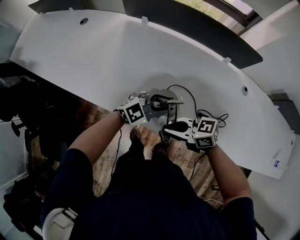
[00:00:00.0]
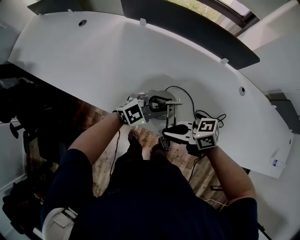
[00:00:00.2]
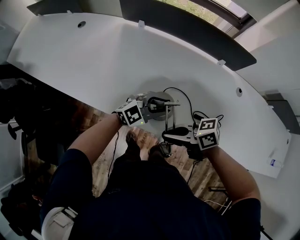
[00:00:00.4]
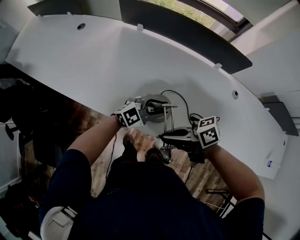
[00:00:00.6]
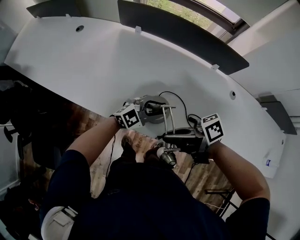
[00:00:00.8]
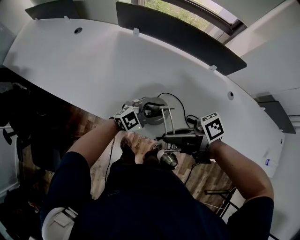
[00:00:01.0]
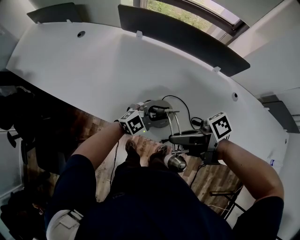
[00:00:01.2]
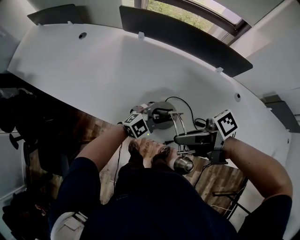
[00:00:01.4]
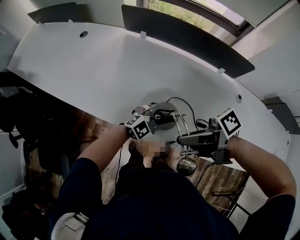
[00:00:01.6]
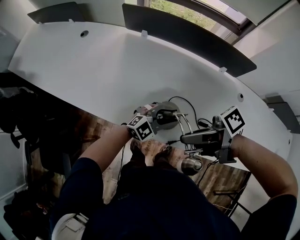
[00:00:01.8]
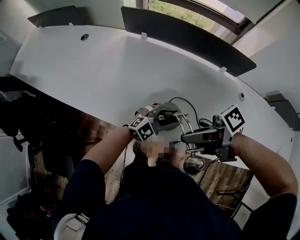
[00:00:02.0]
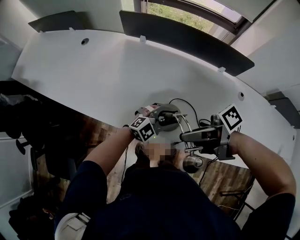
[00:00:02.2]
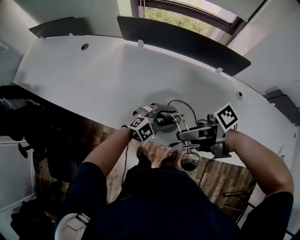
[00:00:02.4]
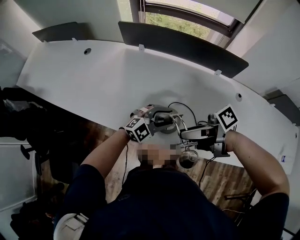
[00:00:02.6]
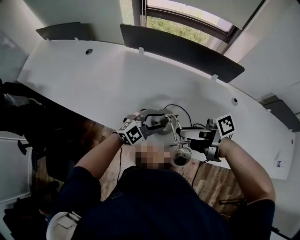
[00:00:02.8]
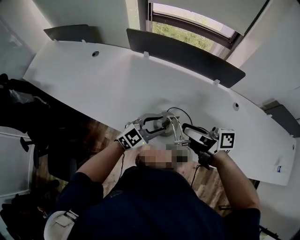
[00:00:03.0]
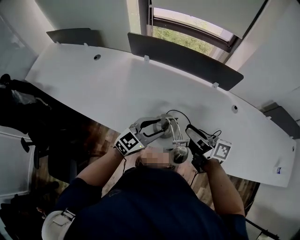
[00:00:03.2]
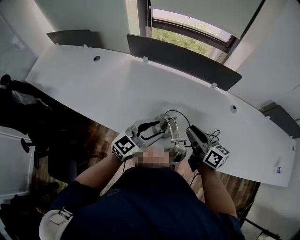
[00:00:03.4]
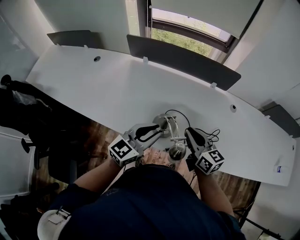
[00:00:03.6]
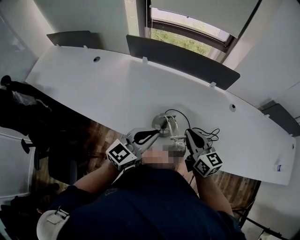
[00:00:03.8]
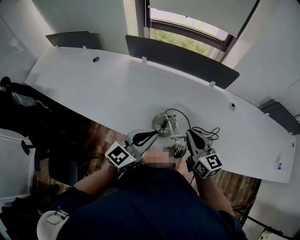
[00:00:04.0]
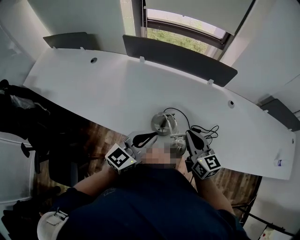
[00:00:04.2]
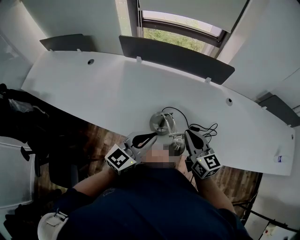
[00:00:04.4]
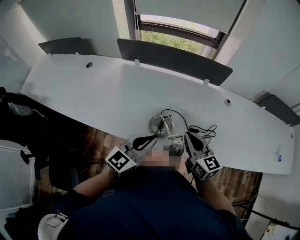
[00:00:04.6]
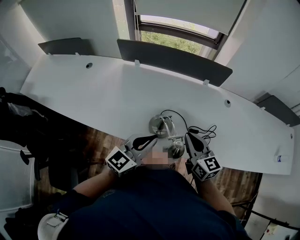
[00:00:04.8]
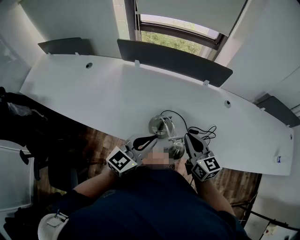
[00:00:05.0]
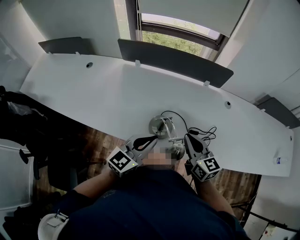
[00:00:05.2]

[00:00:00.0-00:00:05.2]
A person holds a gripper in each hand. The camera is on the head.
00:00:00.0 to 00:00:01.8: The right gripper shifts roughly 15 cm upward, and rolls clockwise, seen from behind, by some 50 degrees.
00:00:01.8 to 00:00:03.4: The left gripper goes approximately 15 cm upward, and turns by approximately 30 degrees. Meanwhile the right gripper shifts by approximately 10 cm, changes its angle by about 70 degrees, and opens, then closes once more.
00:00:03.4 to 00:00:05.2: The left gripper closes; the right gripper changes its angle by roughly 30 degrees, and closes up.

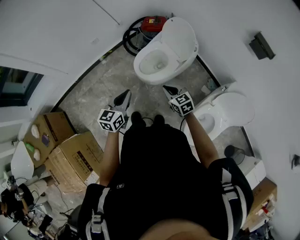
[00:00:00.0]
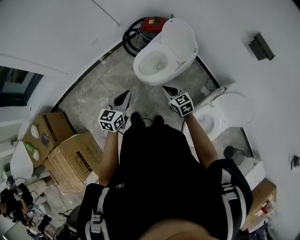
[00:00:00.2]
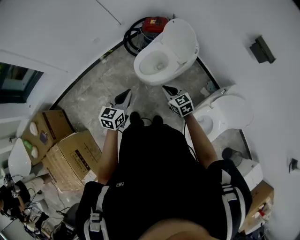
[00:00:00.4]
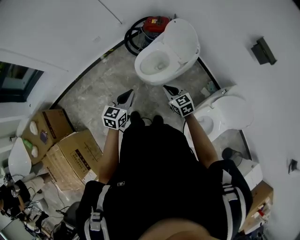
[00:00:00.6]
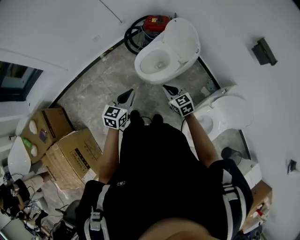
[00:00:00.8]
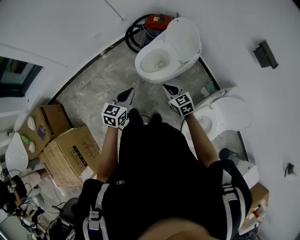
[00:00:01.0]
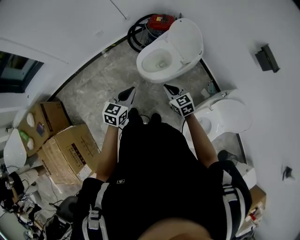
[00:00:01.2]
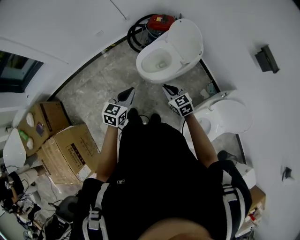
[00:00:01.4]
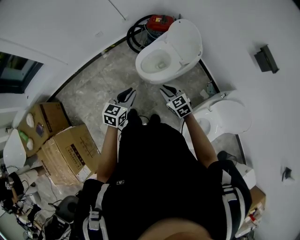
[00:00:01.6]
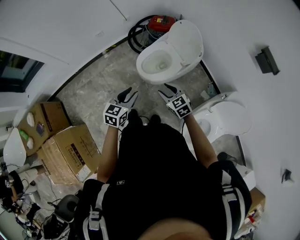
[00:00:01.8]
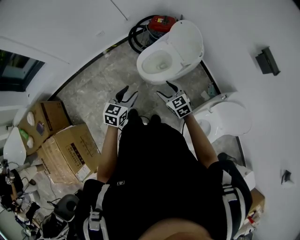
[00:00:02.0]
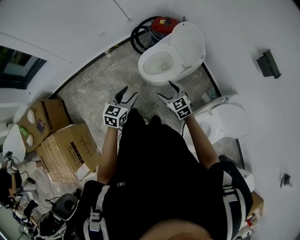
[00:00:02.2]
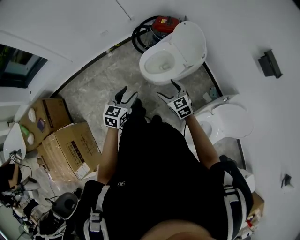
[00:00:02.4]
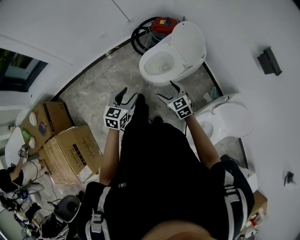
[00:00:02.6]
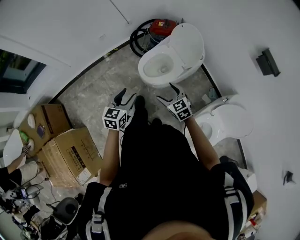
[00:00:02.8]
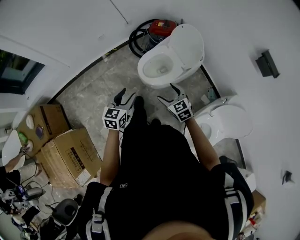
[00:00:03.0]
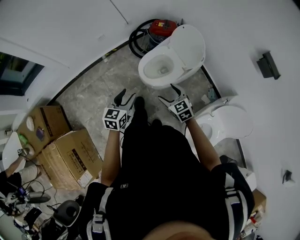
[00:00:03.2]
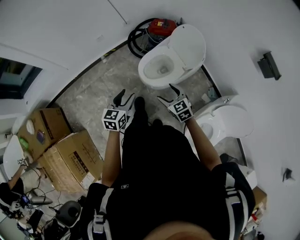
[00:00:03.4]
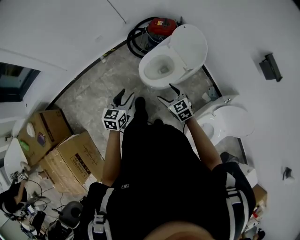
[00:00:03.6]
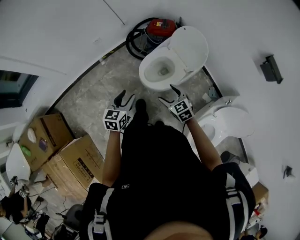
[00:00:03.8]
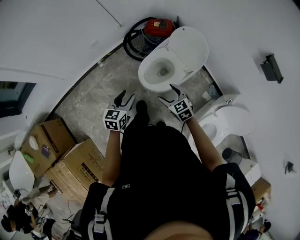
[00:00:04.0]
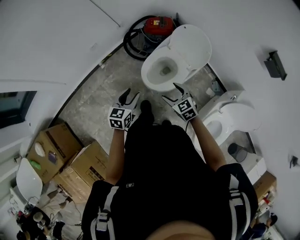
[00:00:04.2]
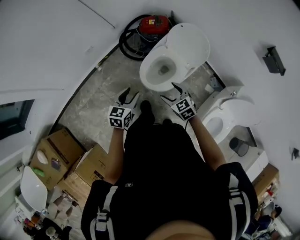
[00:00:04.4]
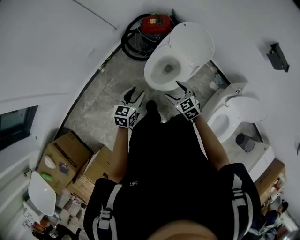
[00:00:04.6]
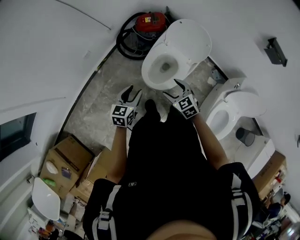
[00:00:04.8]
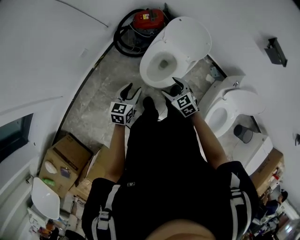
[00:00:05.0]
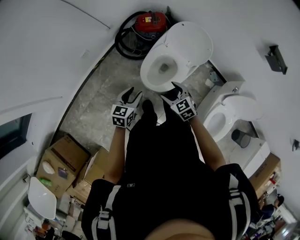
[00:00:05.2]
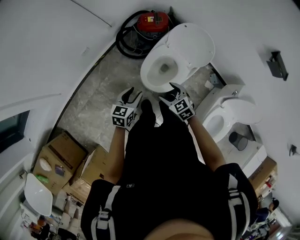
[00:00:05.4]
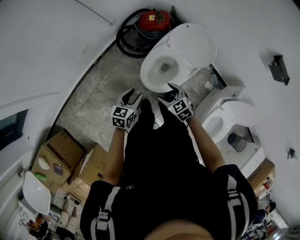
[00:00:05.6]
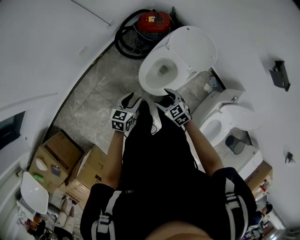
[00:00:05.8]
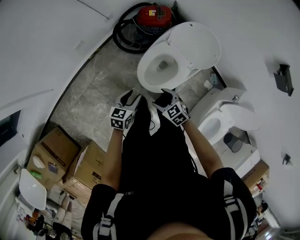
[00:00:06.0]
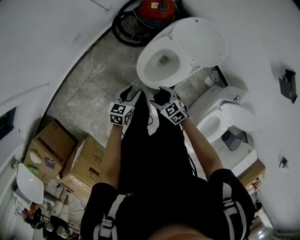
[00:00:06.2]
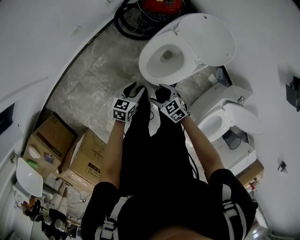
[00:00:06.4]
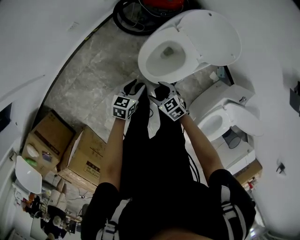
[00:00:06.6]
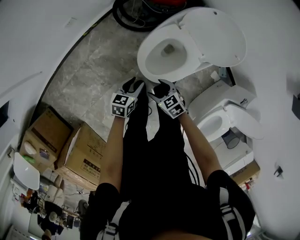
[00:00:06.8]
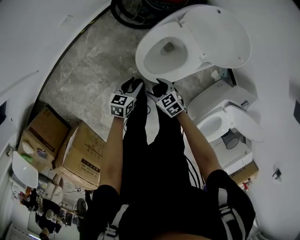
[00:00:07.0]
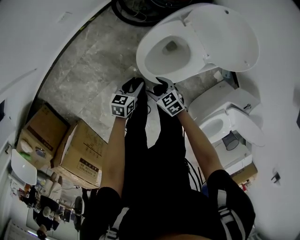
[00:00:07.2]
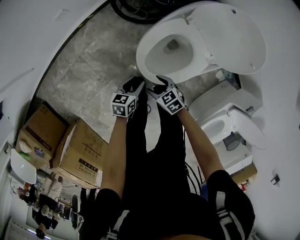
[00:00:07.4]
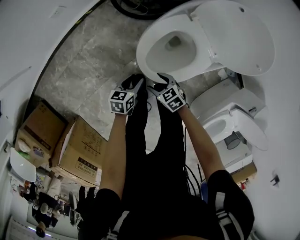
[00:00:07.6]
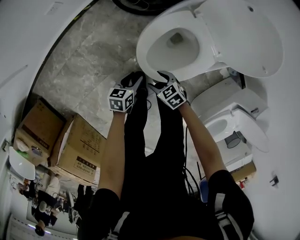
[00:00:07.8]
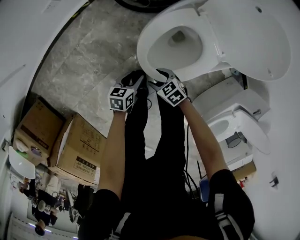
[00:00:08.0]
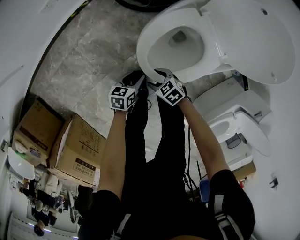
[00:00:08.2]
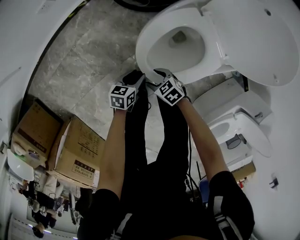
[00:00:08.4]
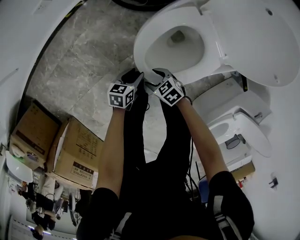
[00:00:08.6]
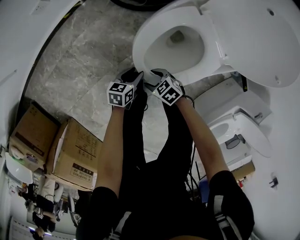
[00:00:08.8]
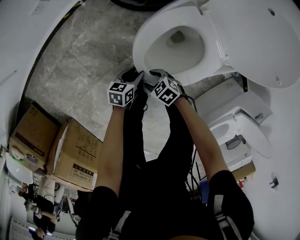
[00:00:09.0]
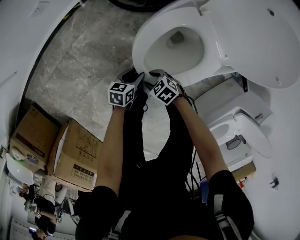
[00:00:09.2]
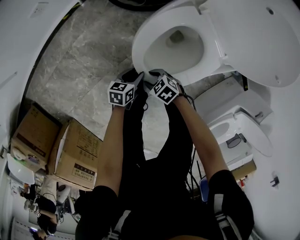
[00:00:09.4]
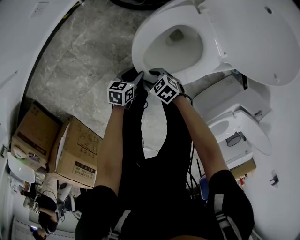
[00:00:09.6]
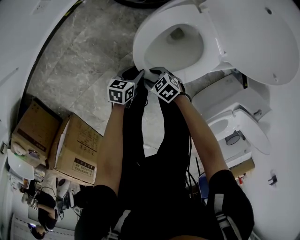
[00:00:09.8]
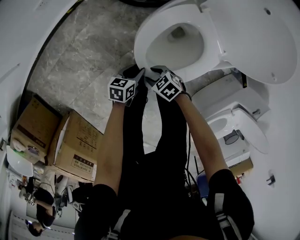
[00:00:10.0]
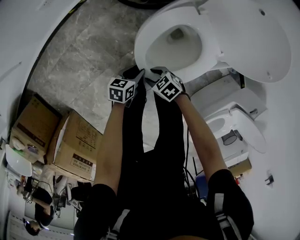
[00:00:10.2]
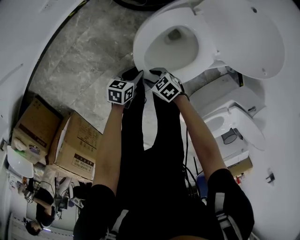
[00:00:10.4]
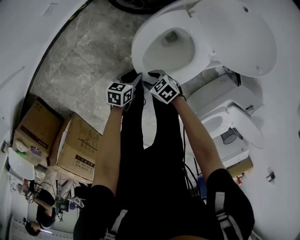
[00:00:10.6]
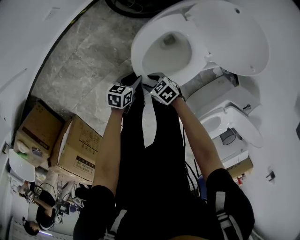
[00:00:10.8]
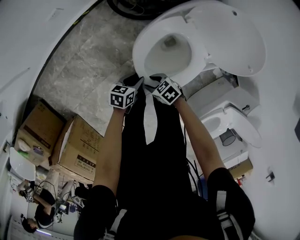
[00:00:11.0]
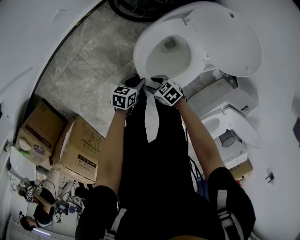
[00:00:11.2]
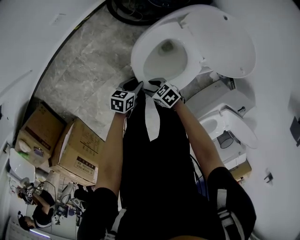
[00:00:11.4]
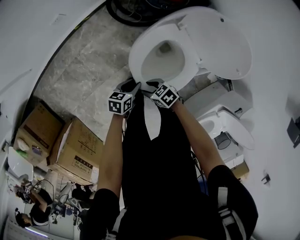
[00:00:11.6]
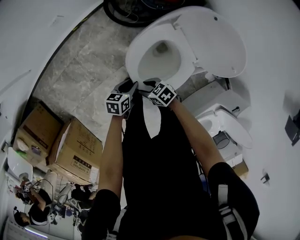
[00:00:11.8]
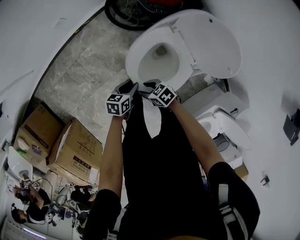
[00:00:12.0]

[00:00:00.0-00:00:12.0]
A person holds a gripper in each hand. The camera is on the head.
00:00:00.0 to 00:00:01.6: The grippers stay close to where they were, moving slightly.
00:00:01.6 to 00:00:03.0: The right gripper opens up. The left gripper opens up.
00:00:03.0 to 00:00:04.4: The right gripper moves forward and to the left, about 15 cm; the left gripper moves forward, approximately 15 cm.
00:00:04.4 to 00:00:06.0: The right gripper heads downward and to the left, covering roughly 10 cm, while the left gripper moves downward and forward, roughly 10 cm.
00:00:06.0 to 00:00:07.6: Both grippers move downward, approximately 25 cm. The left gripper changes its angle by approximately 20 degrees.
00:00:07.6 to 00:00:09.0: The grippers both shift downward by some 10 cm.
00:00:09.0 to 00:00:10.4: Both grippers travel together upward, about 10 cm.
00:00:10.4 to 00:00:12.0: Both grippers travel together upward, about 10 cm.

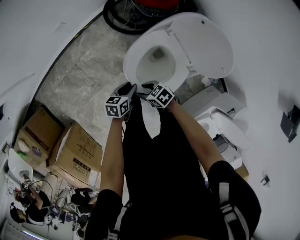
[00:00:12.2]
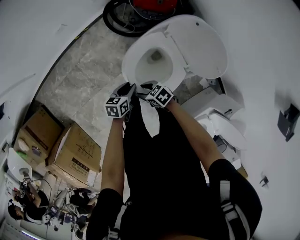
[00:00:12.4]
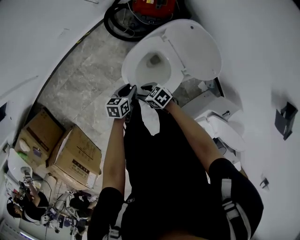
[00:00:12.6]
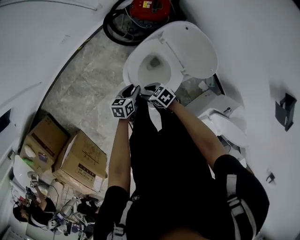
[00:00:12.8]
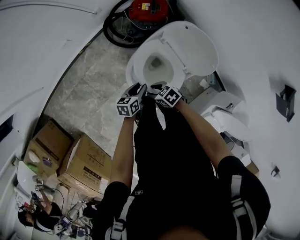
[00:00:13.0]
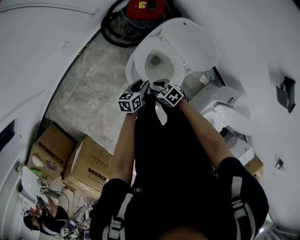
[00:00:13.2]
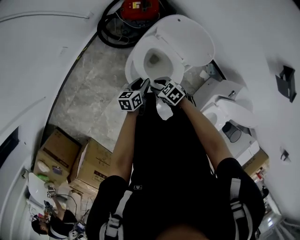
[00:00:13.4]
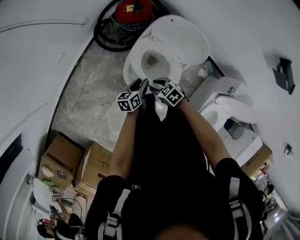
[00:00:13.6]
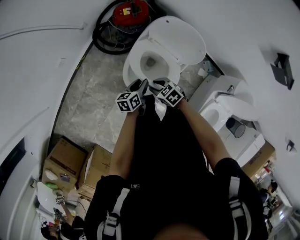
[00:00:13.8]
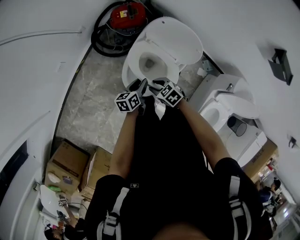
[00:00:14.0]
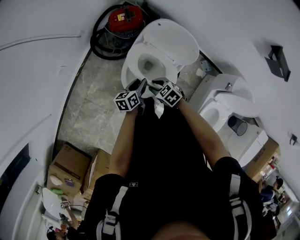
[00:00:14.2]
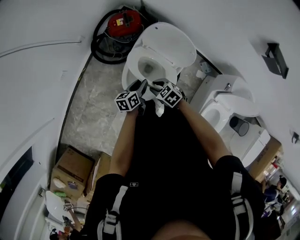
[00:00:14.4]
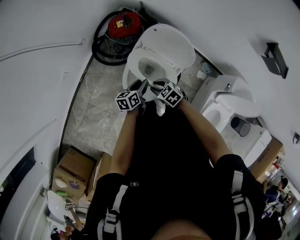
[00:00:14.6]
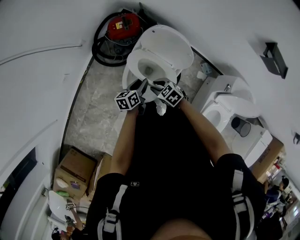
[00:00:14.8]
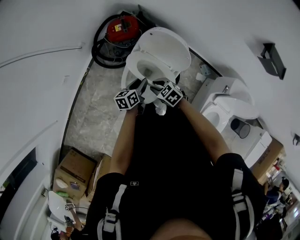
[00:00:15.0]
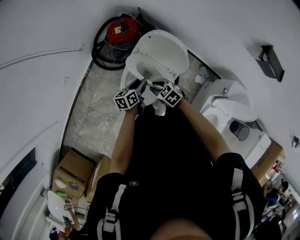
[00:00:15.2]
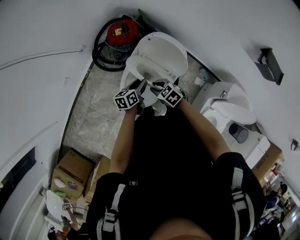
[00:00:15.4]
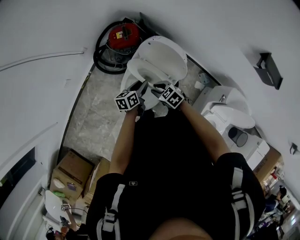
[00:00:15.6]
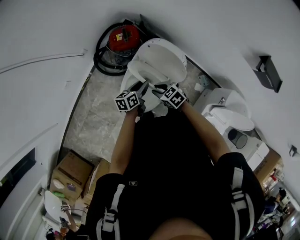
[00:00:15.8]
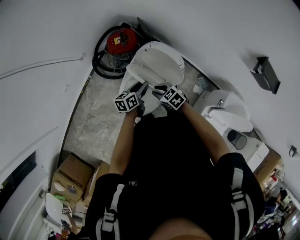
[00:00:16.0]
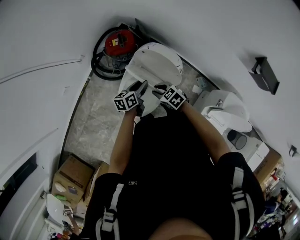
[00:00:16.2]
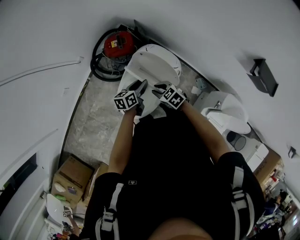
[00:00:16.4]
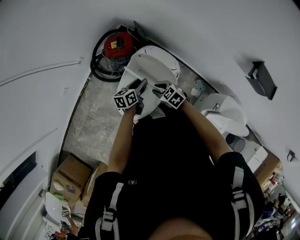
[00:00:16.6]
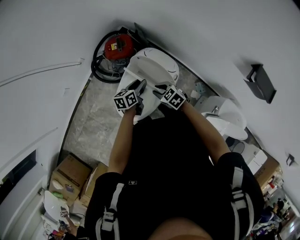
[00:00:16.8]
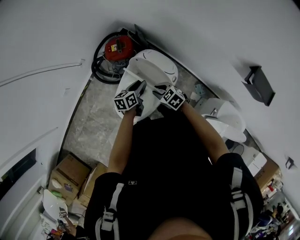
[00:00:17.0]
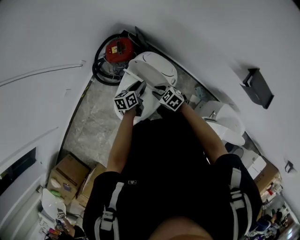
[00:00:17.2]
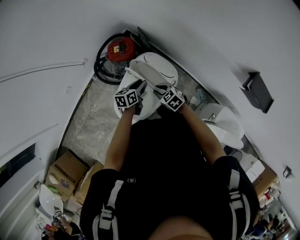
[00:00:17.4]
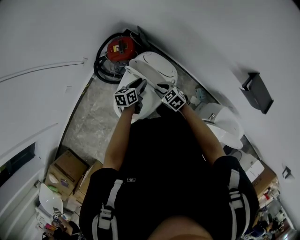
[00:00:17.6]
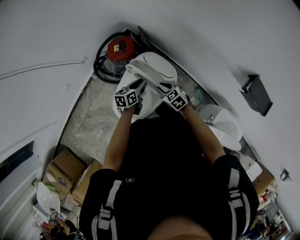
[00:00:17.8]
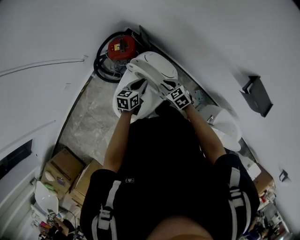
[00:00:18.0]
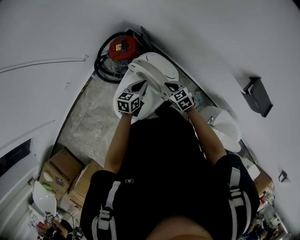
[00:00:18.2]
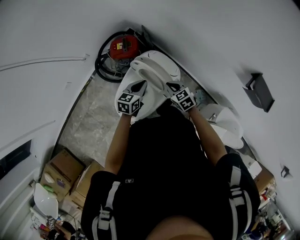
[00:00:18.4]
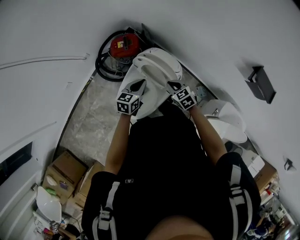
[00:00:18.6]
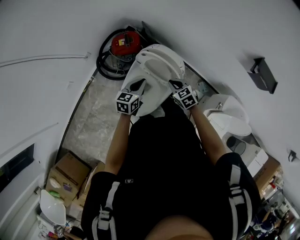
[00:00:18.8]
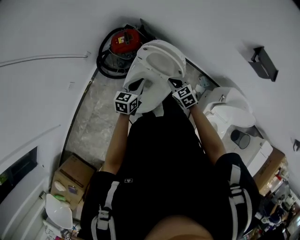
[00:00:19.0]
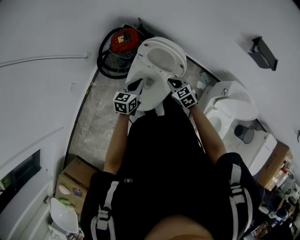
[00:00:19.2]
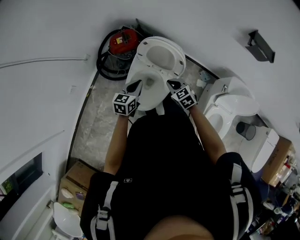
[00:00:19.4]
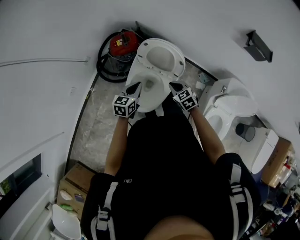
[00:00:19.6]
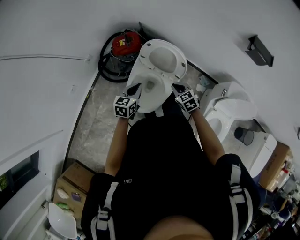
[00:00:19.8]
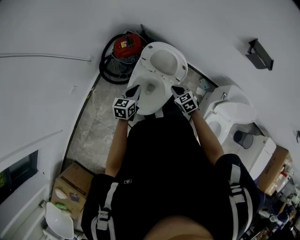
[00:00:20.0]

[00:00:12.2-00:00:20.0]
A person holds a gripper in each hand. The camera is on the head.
00:00:12.2 to 00:00:13.8: The grippers both shift upward by about 10 cm. The right gripper rotates approximately 30 degrees.
00:00:13.8 to 00:00:15.4: Both grippers travel together to the right, upward and forward, about 10 cm.
00:00:15.4 to 00:00:16.8: Both grippers travel together to the right and forward, some 10 cm.
00:00:16.8 to 00:00:18.4: The left gripper goes approximately 5 cm upward, changes its angle by about 20 degrees, and closes. The right gripper is displaced to the right by about 5 cm.
00:00:18.4 to 00:00:20.0: The right gripper heads backward and to the left, covering some 15 cm; the left gripper heads to the left and backward, covering about 20 cm.
